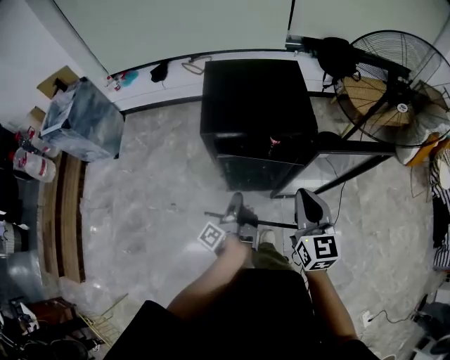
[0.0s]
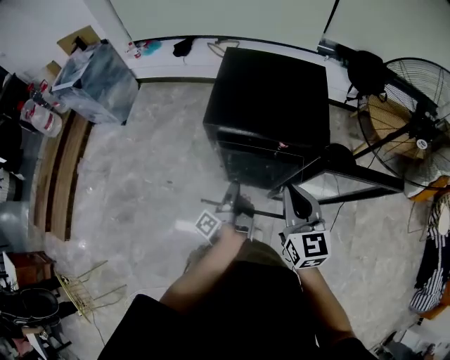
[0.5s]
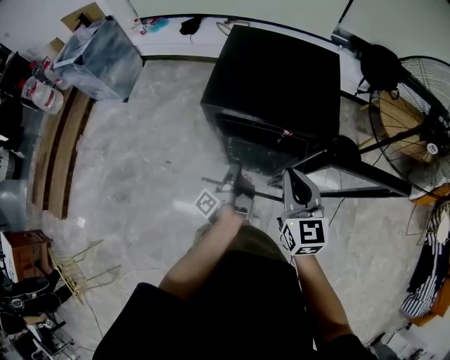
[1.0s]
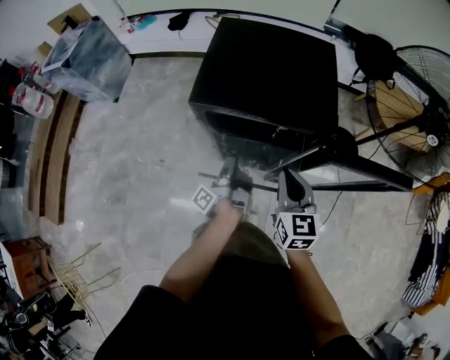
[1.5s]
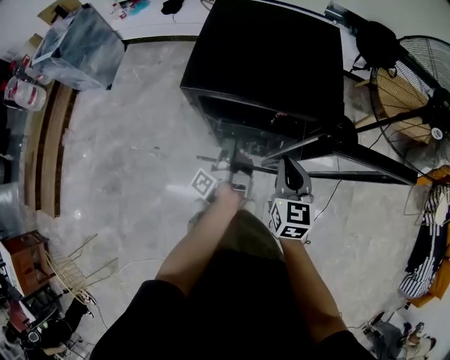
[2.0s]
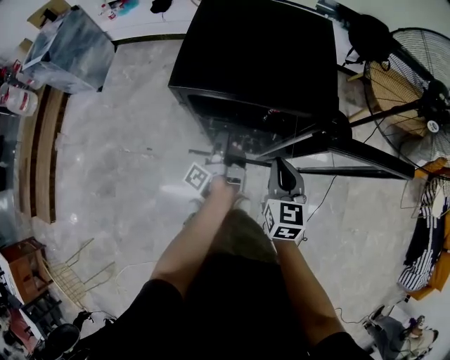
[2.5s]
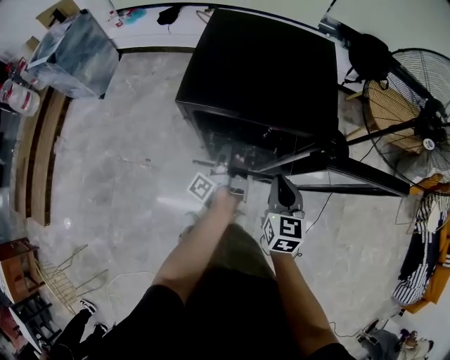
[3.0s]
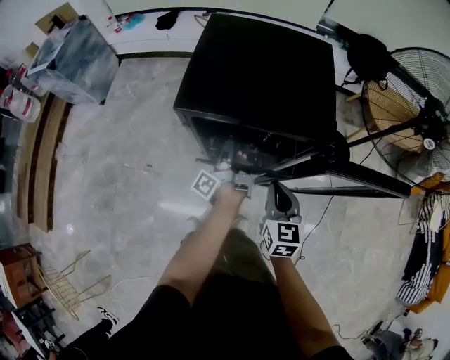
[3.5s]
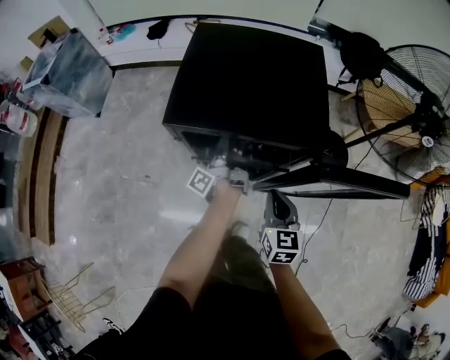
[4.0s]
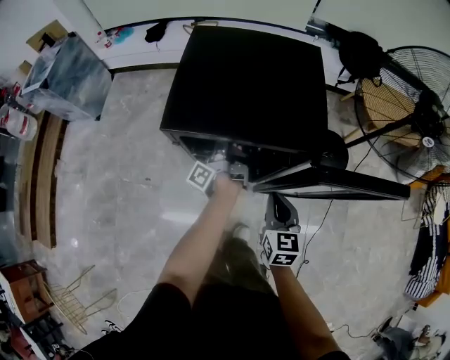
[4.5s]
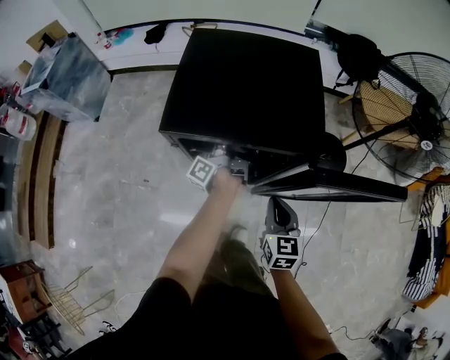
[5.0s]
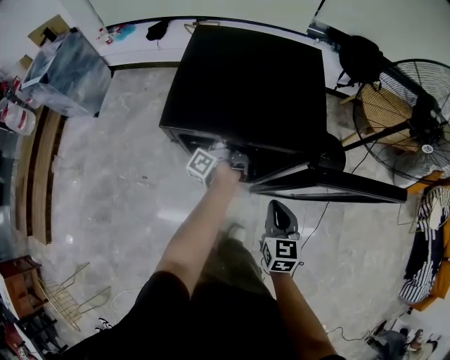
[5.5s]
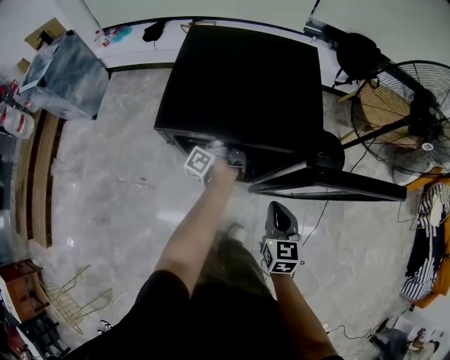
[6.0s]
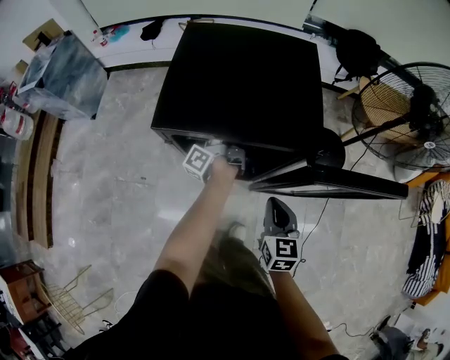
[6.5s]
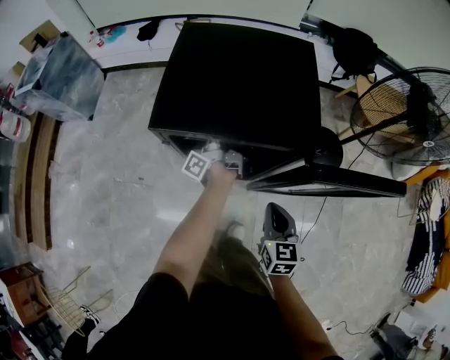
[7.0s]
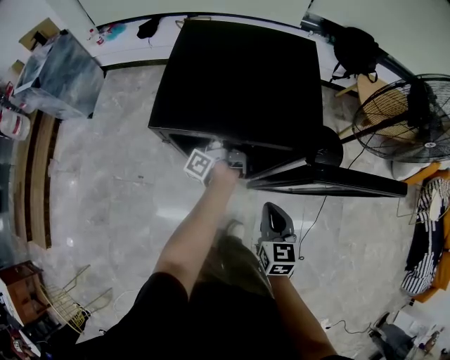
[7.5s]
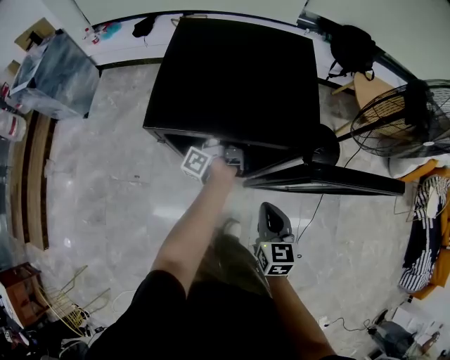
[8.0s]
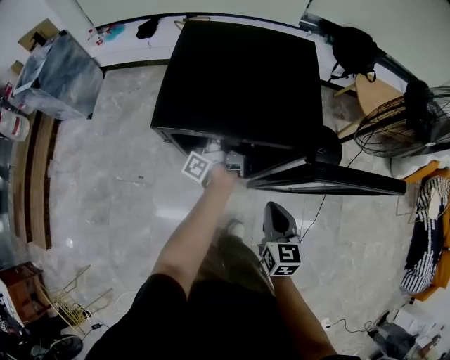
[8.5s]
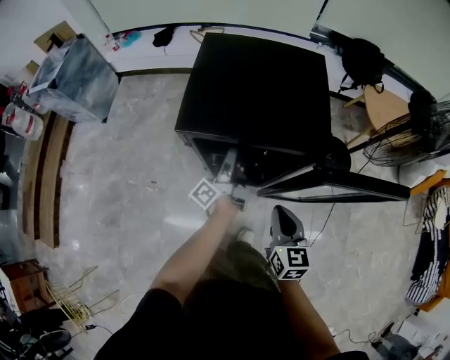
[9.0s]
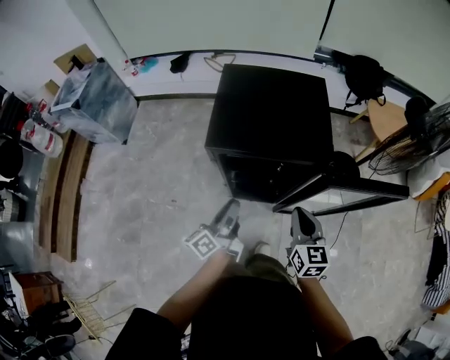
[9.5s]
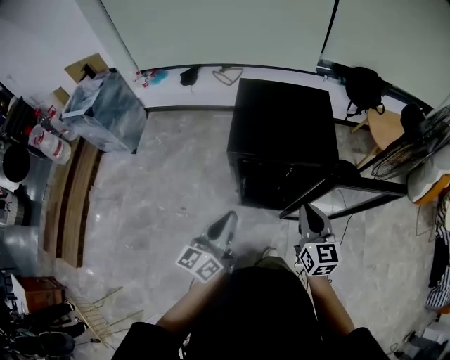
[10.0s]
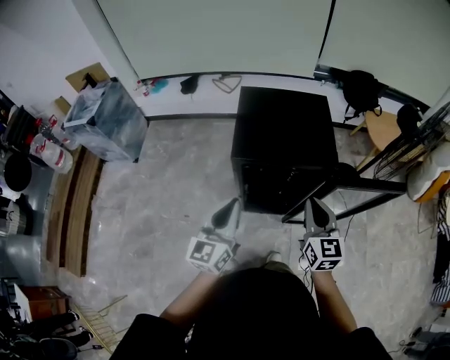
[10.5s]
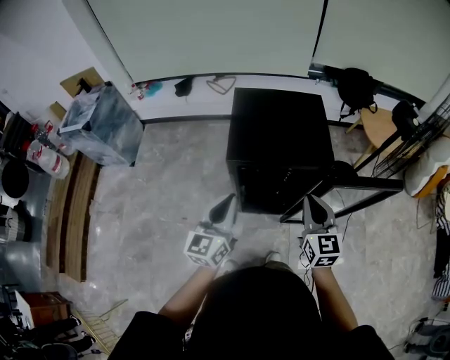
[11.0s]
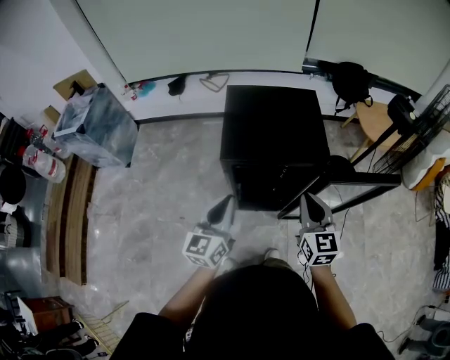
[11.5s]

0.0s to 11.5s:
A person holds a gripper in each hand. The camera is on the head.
0.0s to 2.0s: The right gripper shifts roughly 15 cm downward.
2.0s to 4.0s: The right gripper shifts roughly 5 cm downward.
7.5s to 9.5s: The right gripper shifts some 15 cm upward.
9.5s to 11.5s: The right gripper is displaced upward by approximately 10 cm.

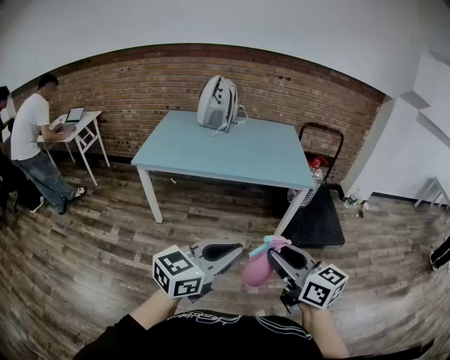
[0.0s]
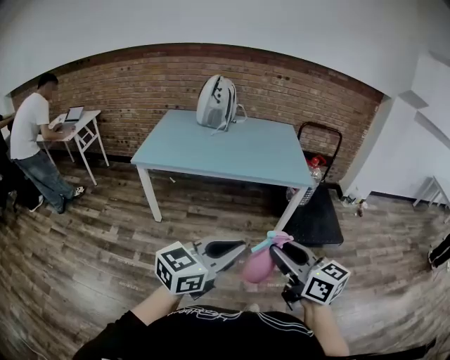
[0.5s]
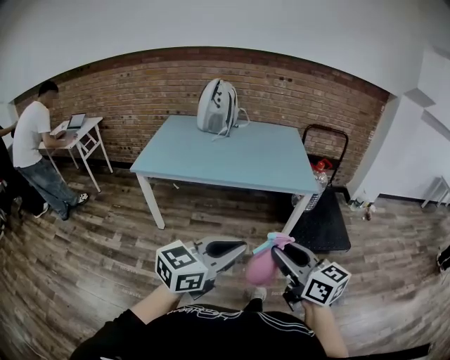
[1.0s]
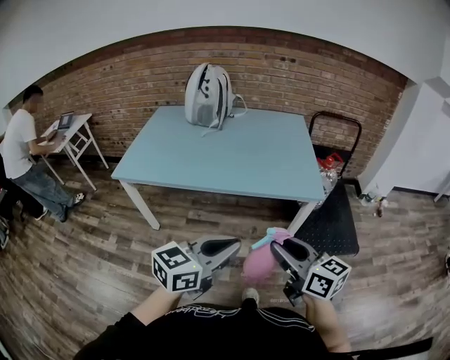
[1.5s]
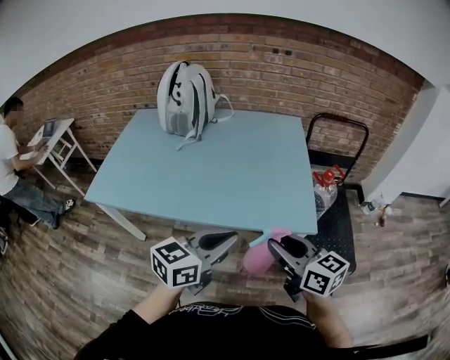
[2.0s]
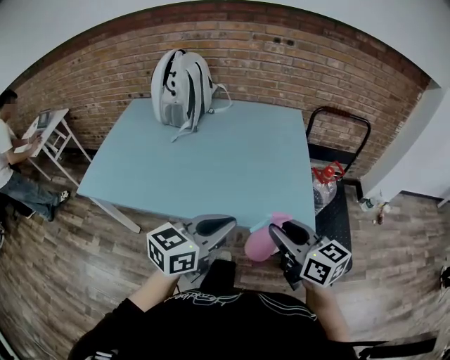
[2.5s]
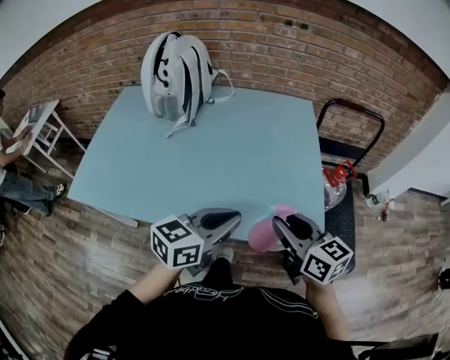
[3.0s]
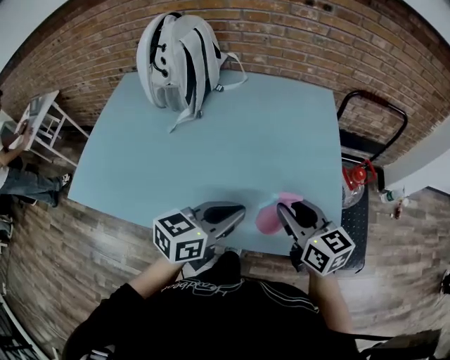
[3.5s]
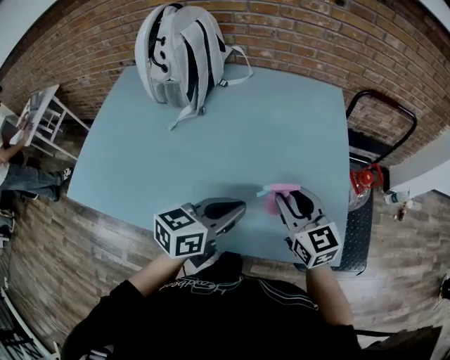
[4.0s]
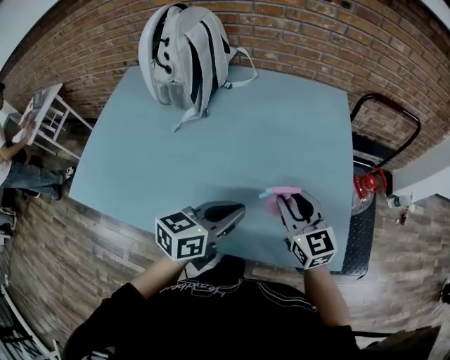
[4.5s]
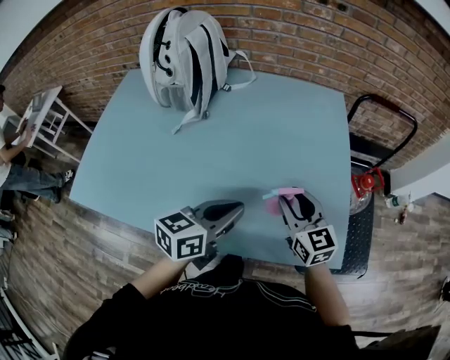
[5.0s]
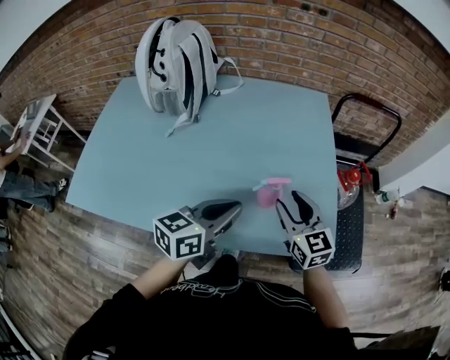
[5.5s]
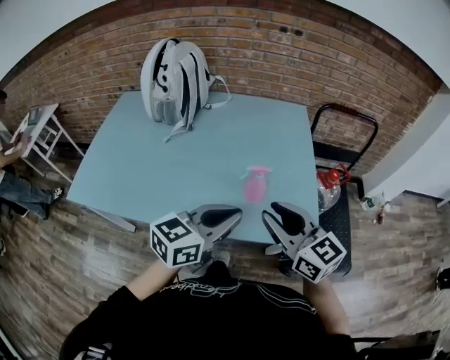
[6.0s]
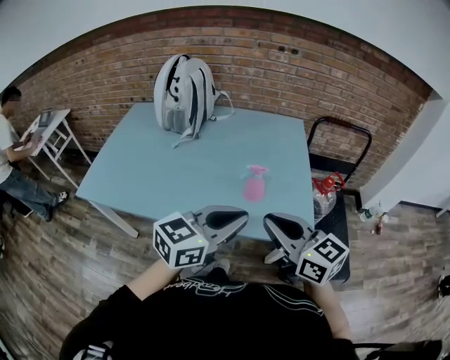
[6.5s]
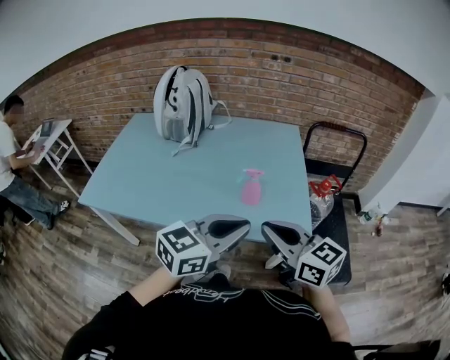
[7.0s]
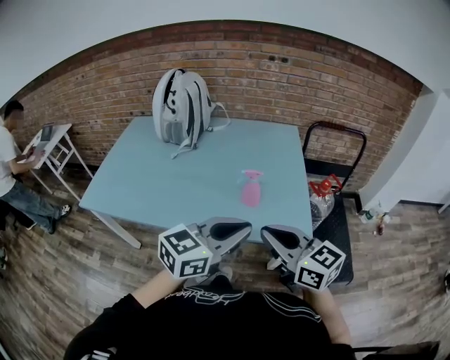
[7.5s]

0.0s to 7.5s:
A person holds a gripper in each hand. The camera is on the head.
0.0s to 2.0s: Both grippers are carried forward, approximately 60 cm.
2.0s to 4.0s: The right gripper travels forward by roughly 35 cm, and changes its angle by about 20 degrees; the left gripper moves forward and downward, some 30 cm.
4.0s to 5.5s: The grippers move only a little.
5.5s to 7.5s: The right gripper heads backward and upward, covering approximately 30 cm, swivels roughly 20 degrees, and closes; the left gripper heads backward, upward and to the right, covering approximately 25 cm, and changes its angle by about 20 degrees.

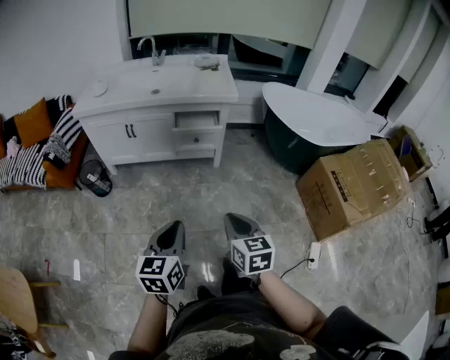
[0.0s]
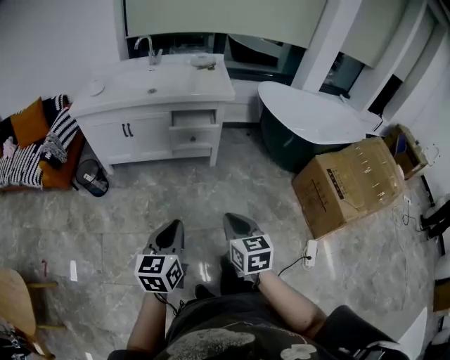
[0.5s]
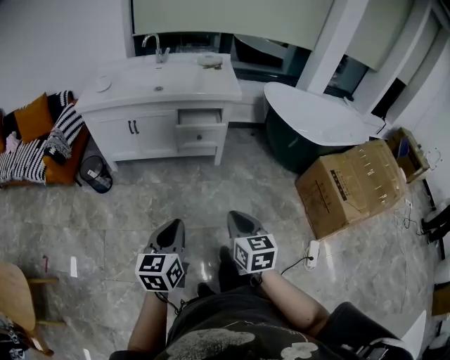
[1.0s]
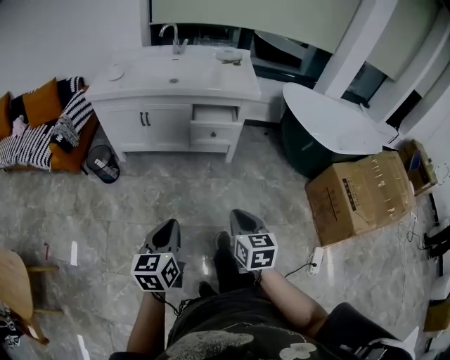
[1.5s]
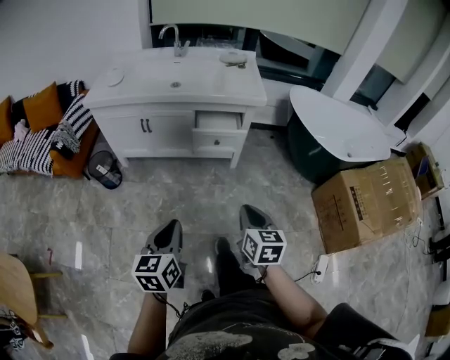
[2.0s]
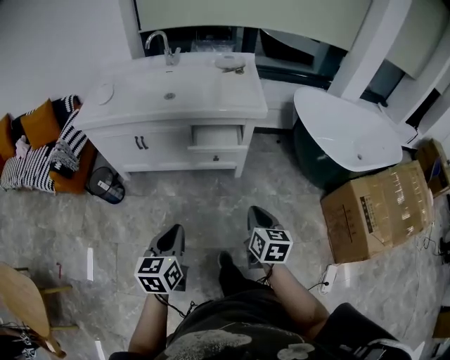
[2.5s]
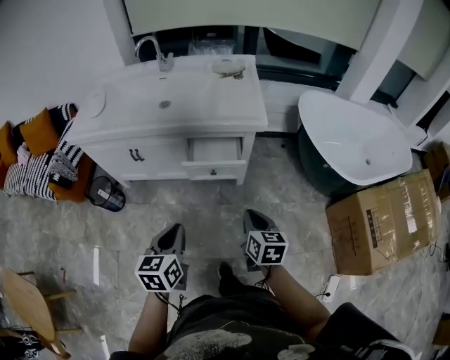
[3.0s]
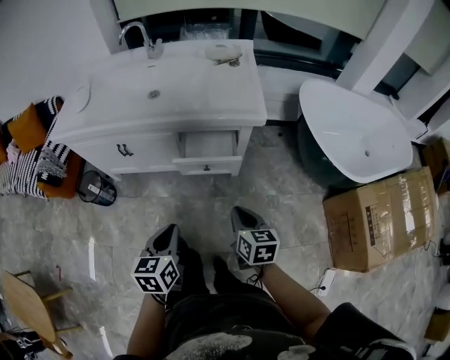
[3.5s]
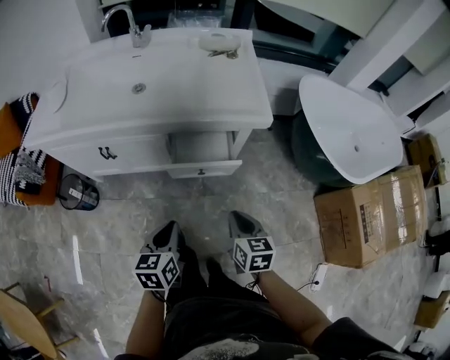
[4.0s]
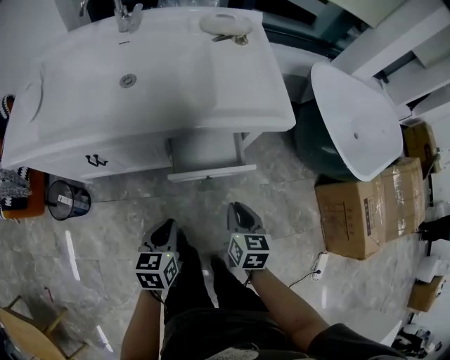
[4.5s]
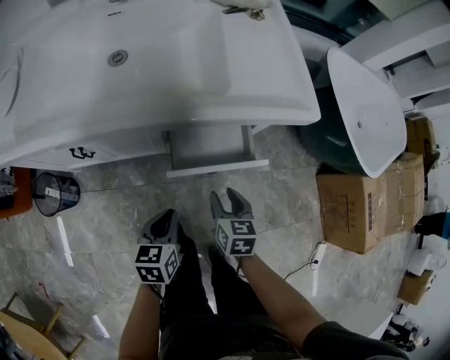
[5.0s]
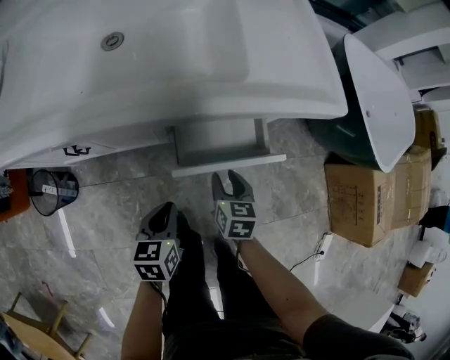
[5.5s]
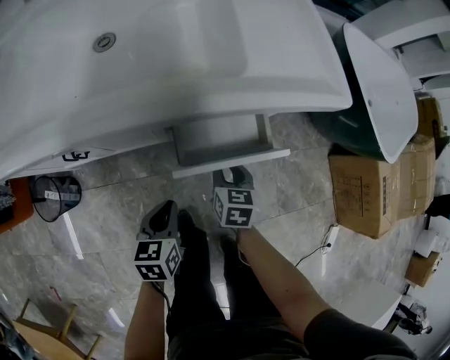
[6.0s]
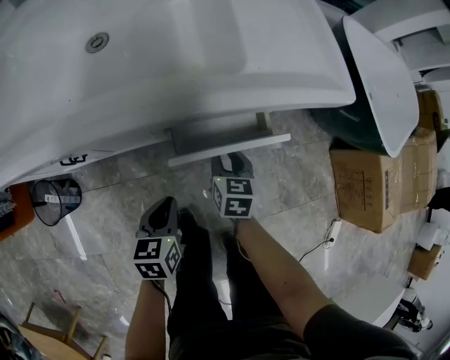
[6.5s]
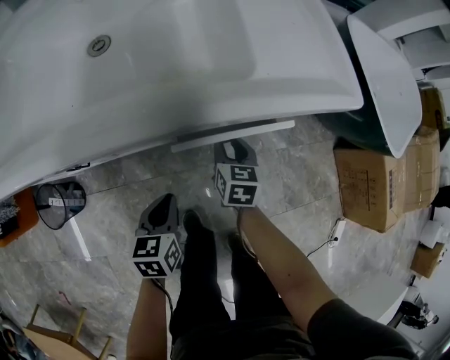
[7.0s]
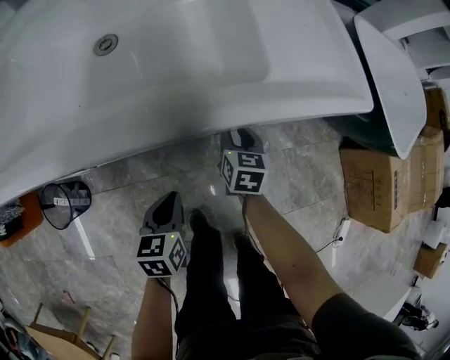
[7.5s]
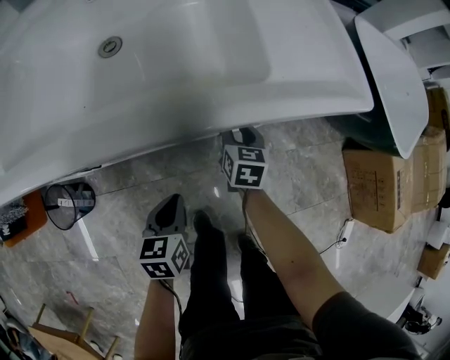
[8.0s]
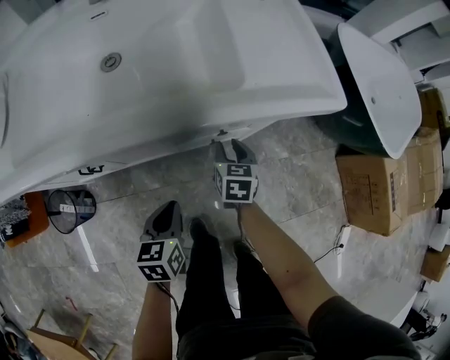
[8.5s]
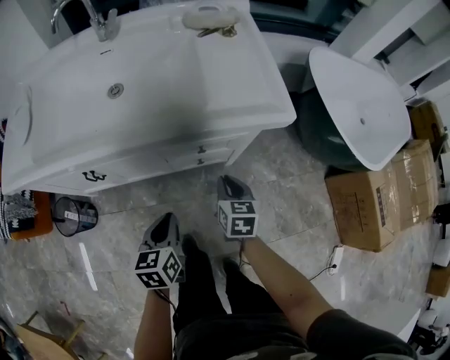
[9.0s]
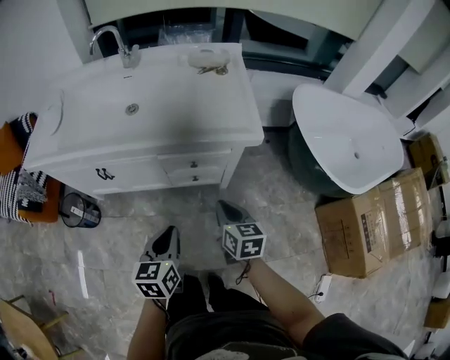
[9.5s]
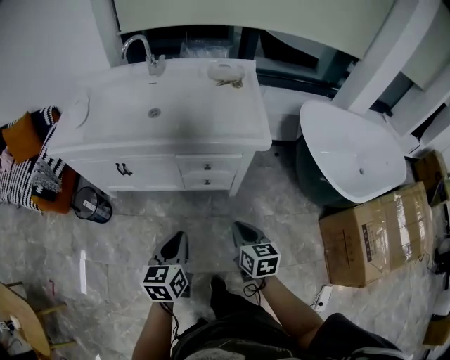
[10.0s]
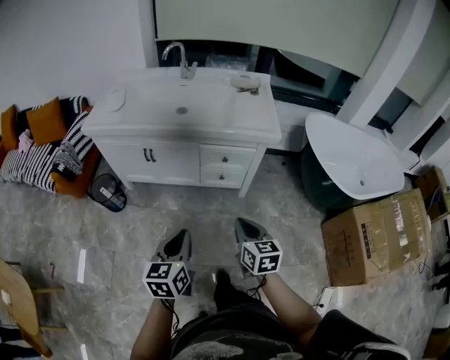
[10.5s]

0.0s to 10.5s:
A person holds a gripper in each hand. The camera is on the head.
0.0s to 2.0s: The left gripper is displaced forward and to the left by roughly 10 cm. Meanwhile the right gripper heads forward, covering roughly 10 cm.
2.0s to 4.0s: The left gripper heads forward, covering approximately 35 cm, while the right gripper heads forward and downward, covering some 35 cm.
4.0s to 6.5s: Both grippers move downward, forward and to the left, roughly 30 cm. The right gripper opens up.
8.5s to 10.5s: Both grippers travel together backward and upward, some 50 cm. The right gripper swivels some 30 degrees, and closes. The left gripper rotates about 30 degrees.
